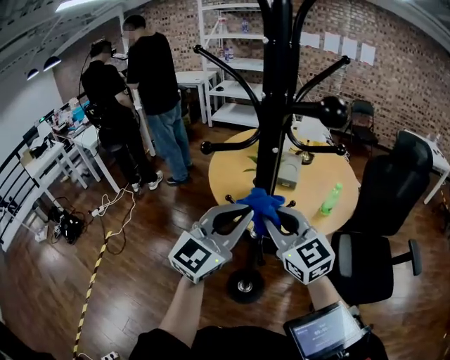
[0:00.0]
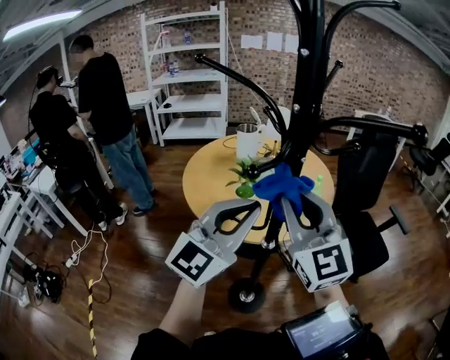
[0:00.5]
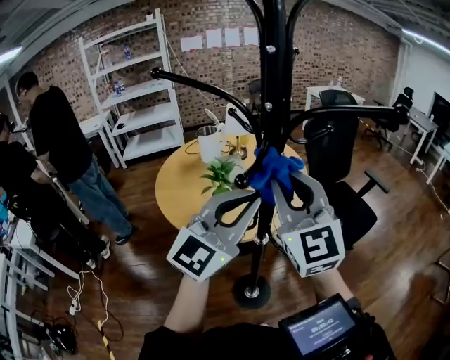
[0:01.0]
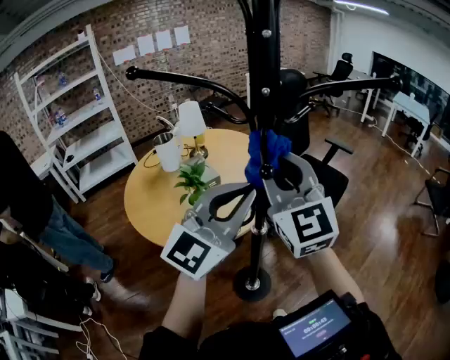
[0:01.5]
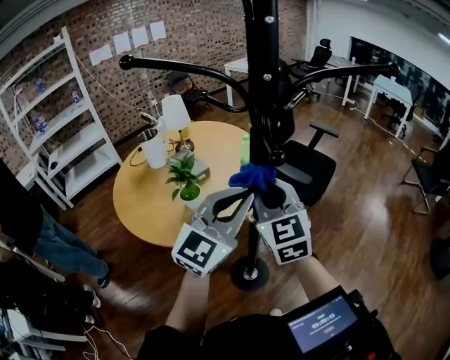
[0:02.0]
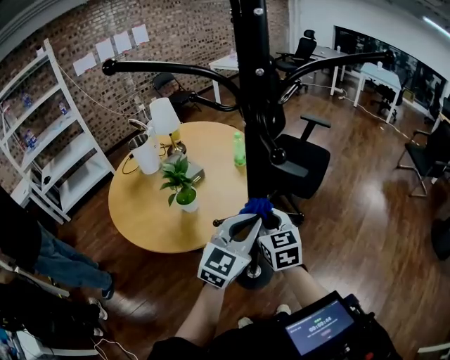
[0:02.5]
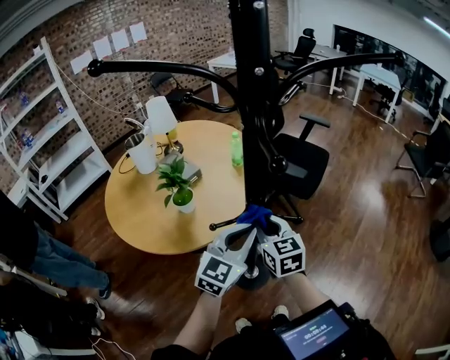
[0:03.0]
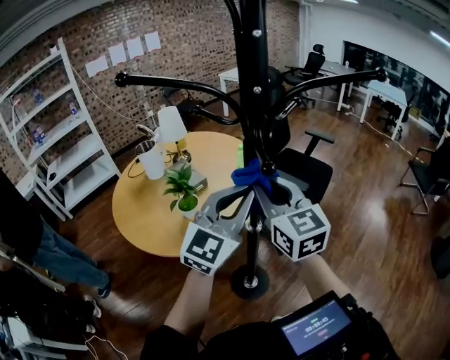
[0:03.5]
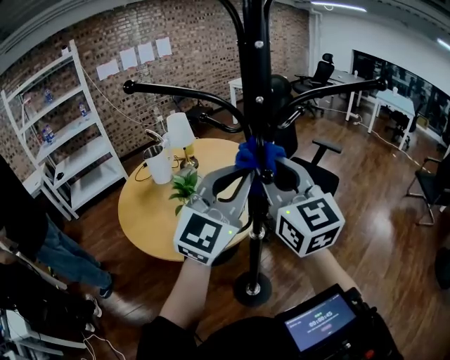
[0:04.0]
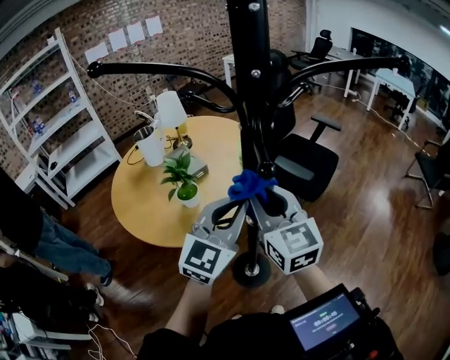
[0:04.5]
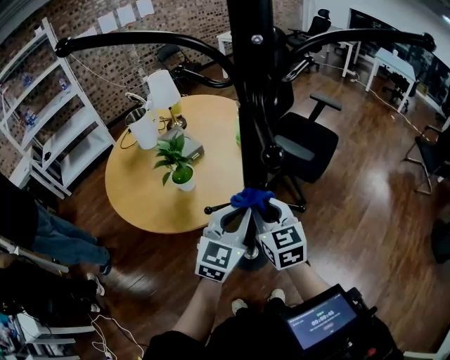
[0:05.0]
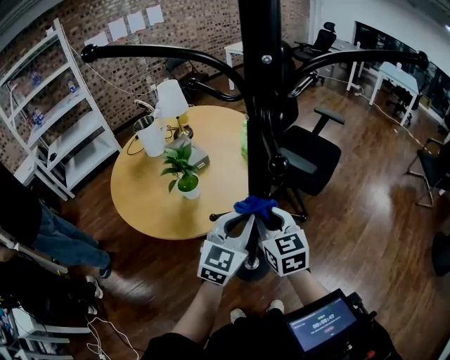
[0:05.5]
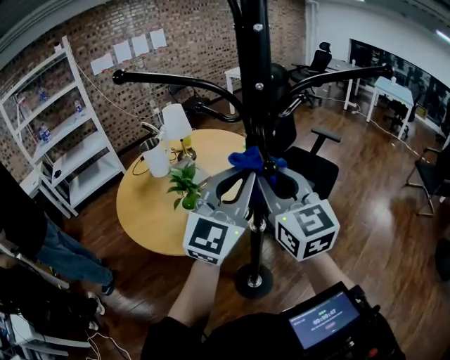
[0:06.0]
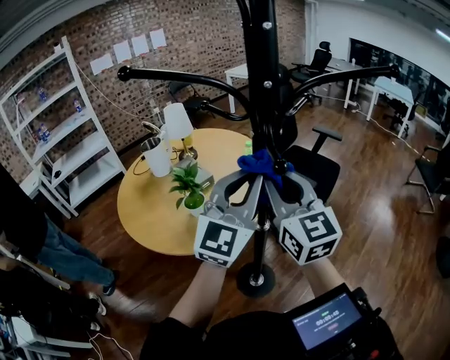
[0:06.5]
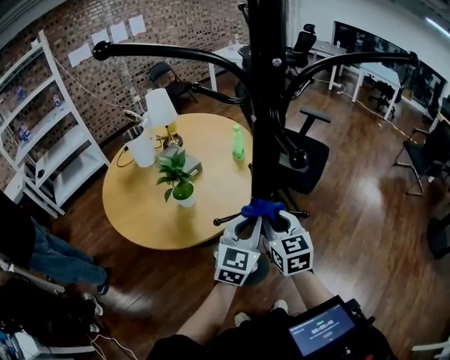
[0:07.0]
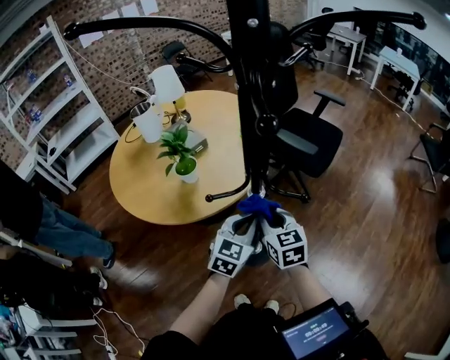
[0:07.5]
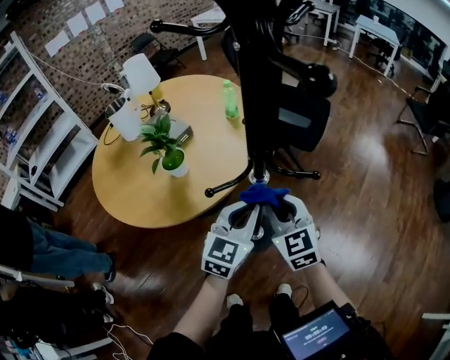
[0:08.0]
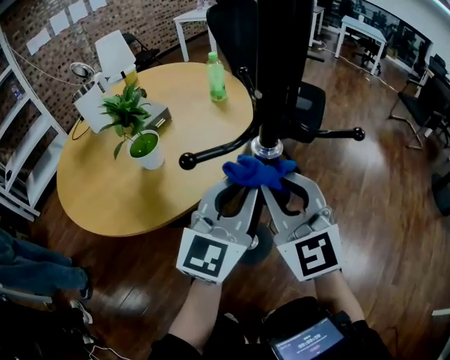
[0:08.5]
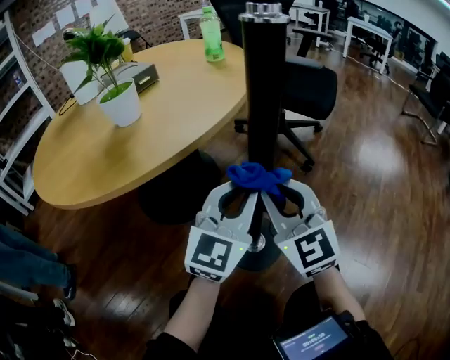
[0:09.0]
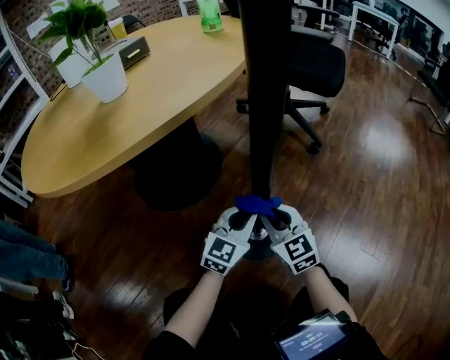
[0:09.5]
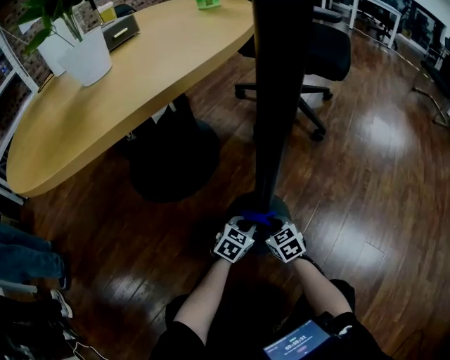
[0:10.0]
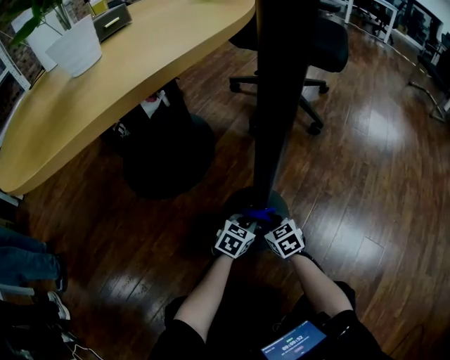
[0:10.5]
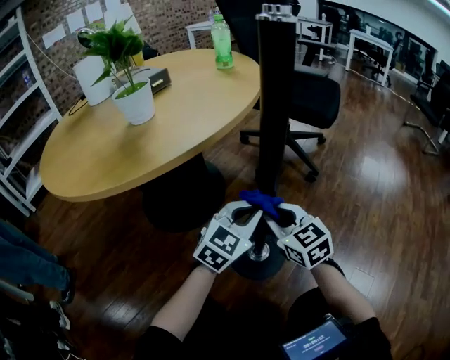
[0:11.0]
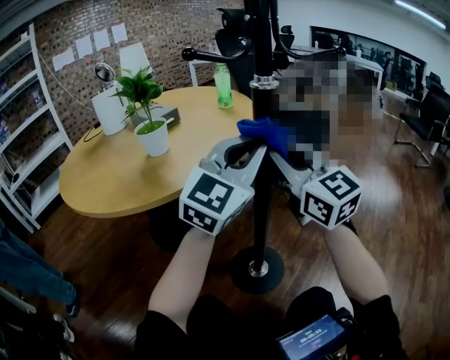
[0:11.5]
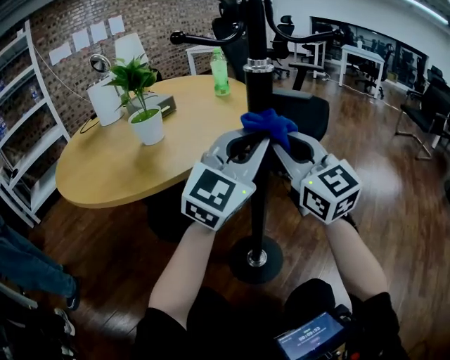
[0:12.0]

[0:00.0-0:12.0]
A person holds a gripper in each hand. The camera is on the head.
0:00.0 to 0:02.0: The right gripper travels upward and back again, roughly 15 cm each way, and rotates some 80 degrees; the left gripper reaches approximately 5 cm upward, then returns, and rotates some 60 degrees.
0:02.0 to 0:04.0: Both grippers move upward, approximately 10 cm.
0:04.0 to 0:06.0: The right gripper reaches approximately 30 cm downward, then returns. The left gripper travels downward and back again, about 25 cm each way.
0:06.0 to 0:08.0: The two grippers go some 30 cm downward. The left gripper swivels approximately 30 degrees. Meanwhile the right gripper turns by about 30 degrees.
0:08.0 to 0:10.0: Both grippers travel together downward, approximately 80 cm. The right gripper changes its angle by approximately 30 degrees, while the left gripper turns by about 30 degrees.
0:10.0 to 0:12.0: Both grippers move upward, roughly 60 cm. The left gripper tilts its fingers roughly 50 degrees upward. The right gripper tips its fingers upward by about 50 degrees.

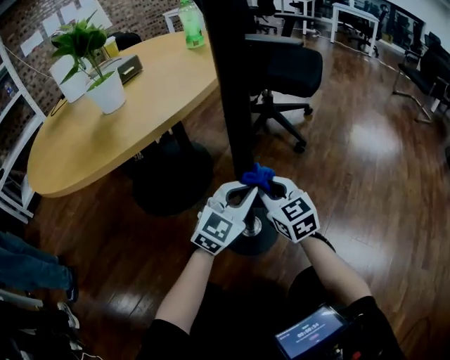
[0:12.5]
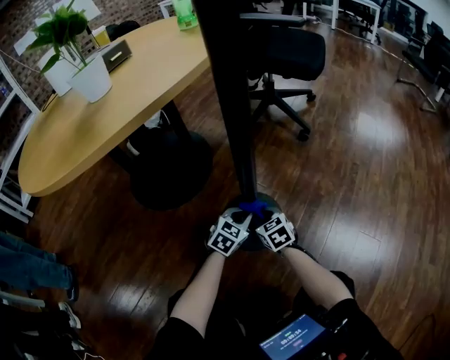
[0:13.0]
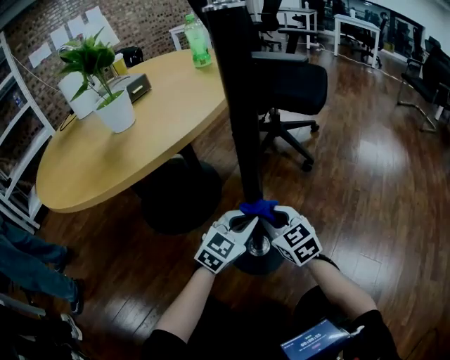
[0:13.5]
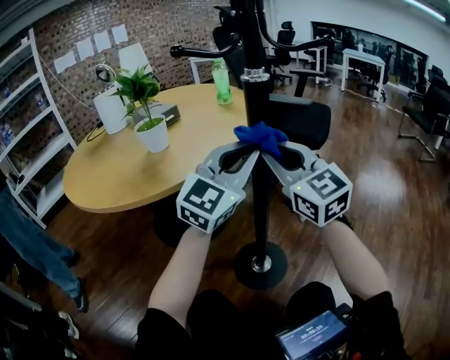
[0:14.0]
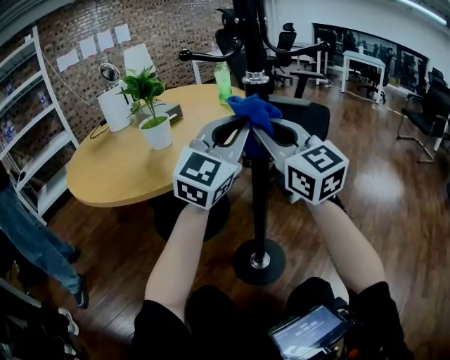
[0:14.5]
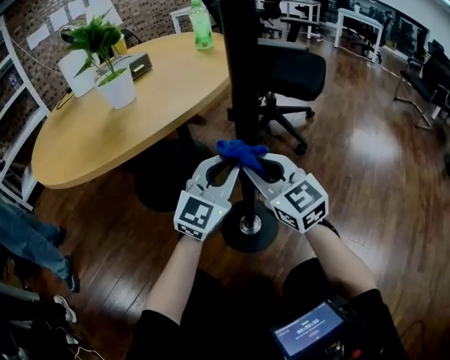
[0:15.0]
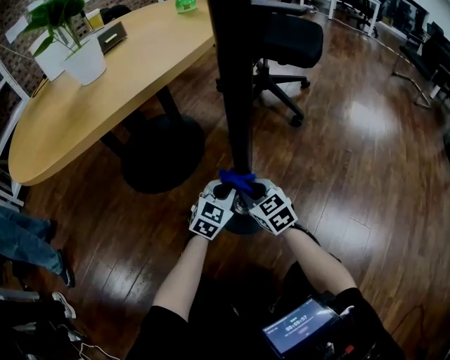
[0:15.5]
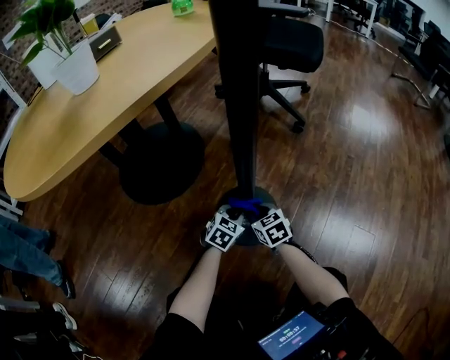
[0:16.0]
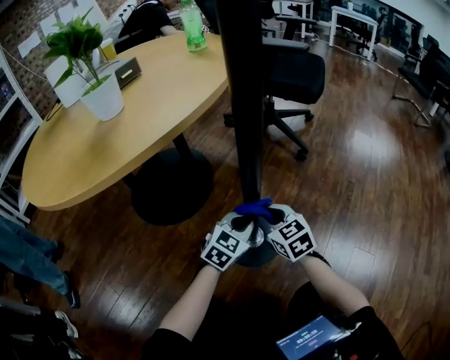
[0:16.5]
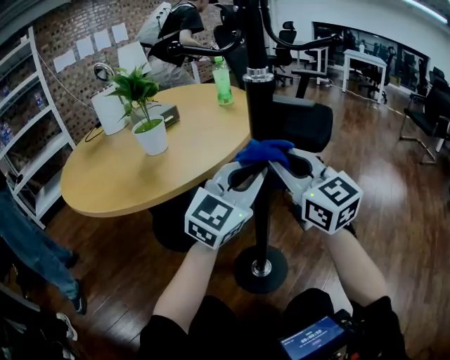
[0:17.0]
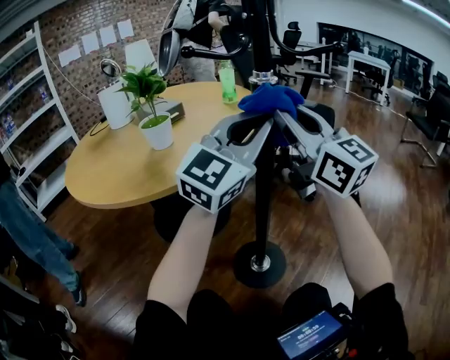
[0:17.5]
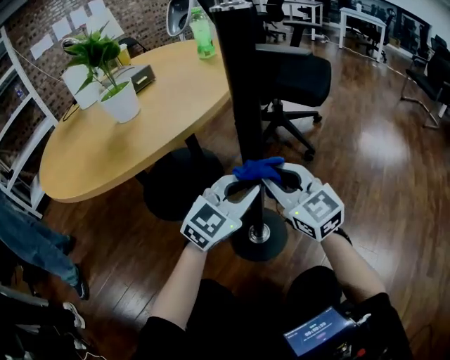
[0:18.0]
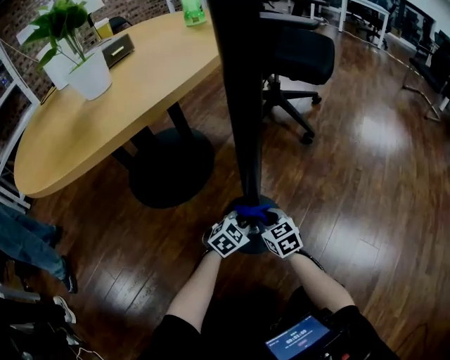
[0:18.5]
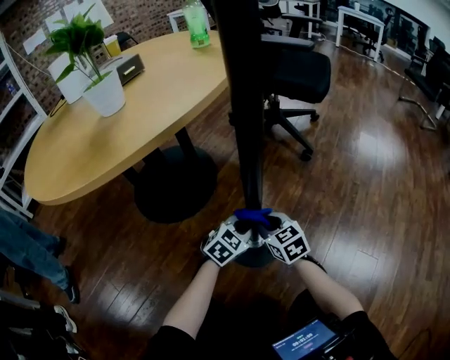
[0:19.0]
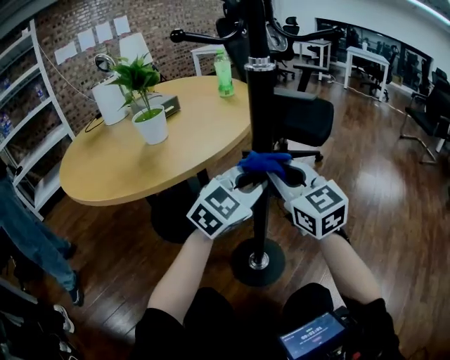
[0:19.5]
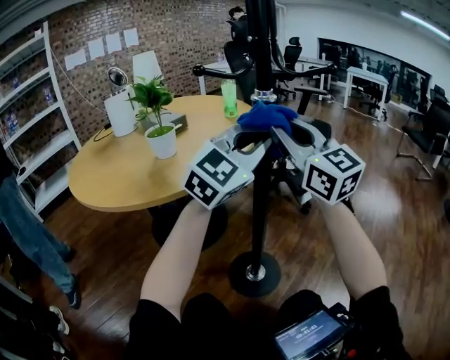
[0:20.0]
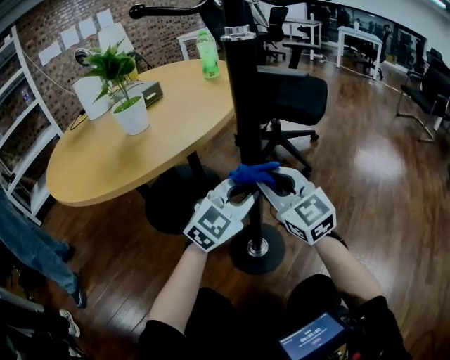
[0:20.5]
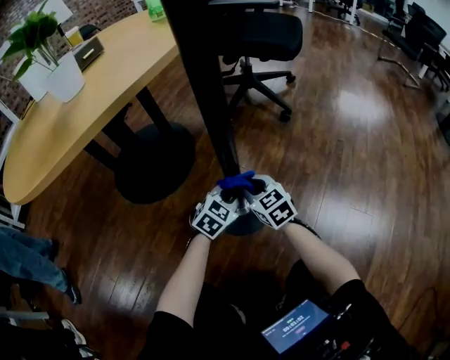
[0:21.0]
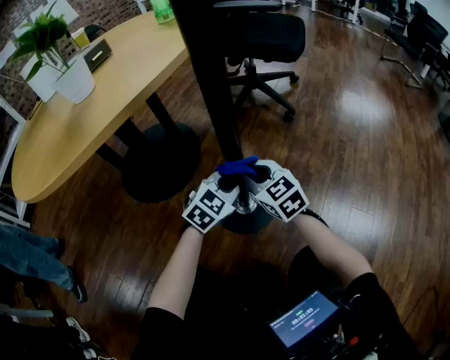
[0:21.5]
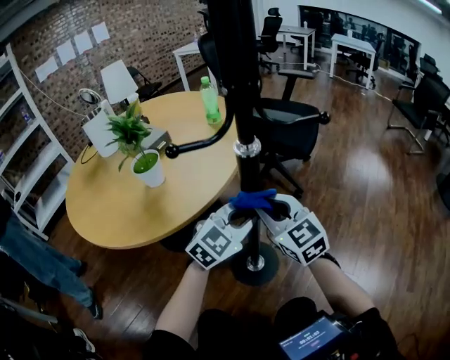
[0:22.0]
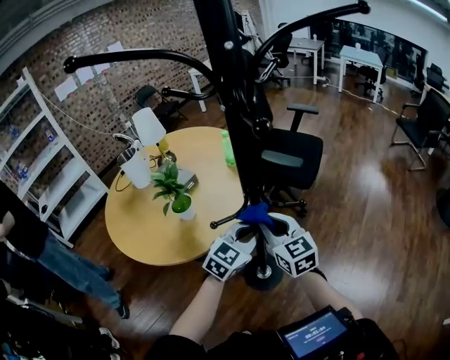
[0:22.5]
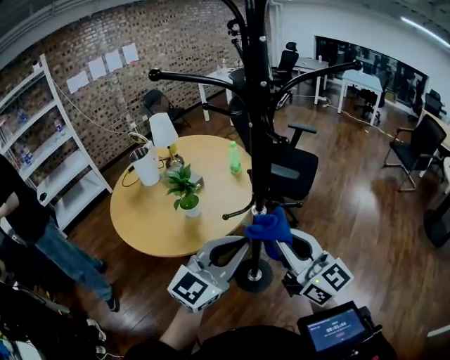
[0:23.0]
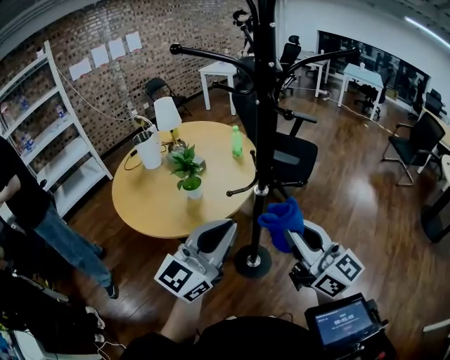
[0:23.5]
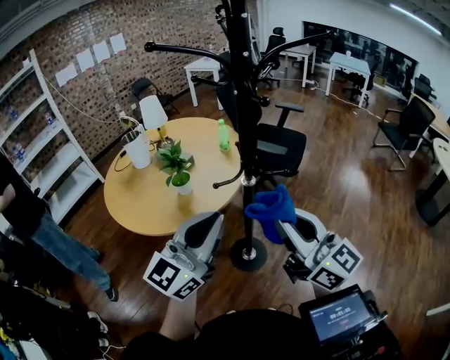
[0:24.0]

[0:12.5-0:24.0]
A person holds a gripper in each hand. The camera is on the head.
0:12.5 to 0:14.5: Both grippers move upward, about 35 cm. The right gripper swivels about 30 degrees; the left gripper swivels roughly 30 degrees.
0:14.5 to 0:16.5: Both grippers move downward, approximately 50 cm. The right gripper tilts its fingers about 40 degrees downward, while the left gripper tips its fingers downward by some 40 degrees.
0:16.5 to 0:18.5: The left gripper travels upward and back again, approximately 50 cm each way; the right gripper reaches about 50 cm upward, then returns.
0:18.5 to 0:20.0: Both grippers travel together upward, some 60 cm. The right gripper tips its fingers upward by about 50 degrees. The left gripper tips its fingers upward by about 40 degrees.
0:20.0 to 0:22.0: The left gripper goes downward and returns, some 60 cm each way, and turns by some 30 degrees; the right gripper reaches about 60 cm downward, then returns, and changes its angle by about 30 degrees.
0:22.0 to 0:24.0: The grippers both shift upward and backward by roughly 50 cm. The left gripper tilts its fingers roughly 40 degrees upward. The right gripper turns by about 40 degrees.

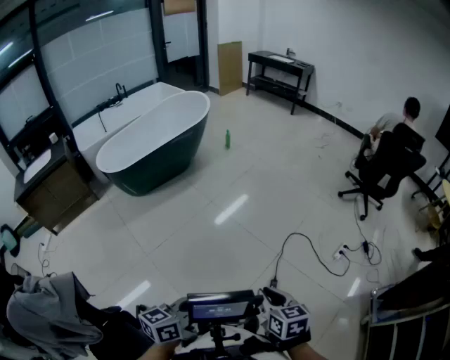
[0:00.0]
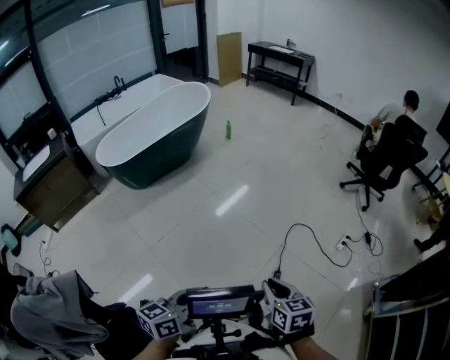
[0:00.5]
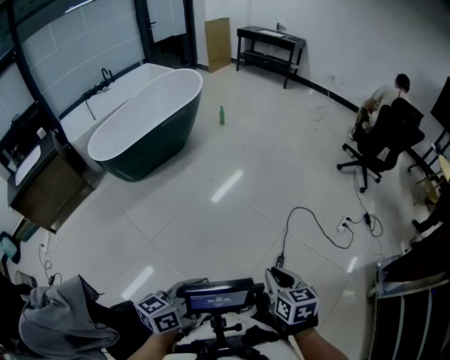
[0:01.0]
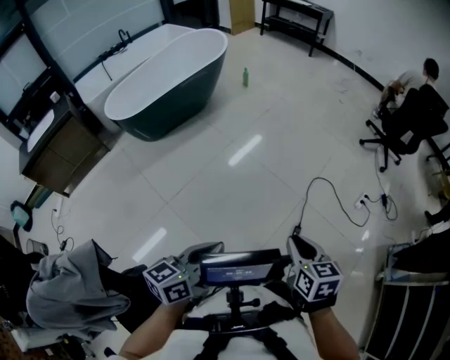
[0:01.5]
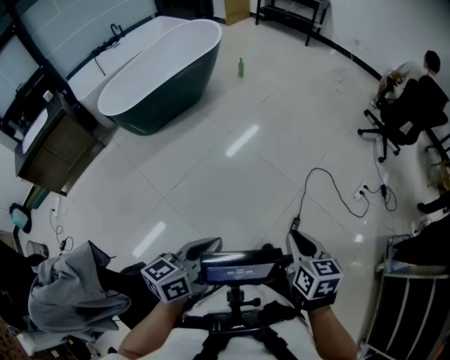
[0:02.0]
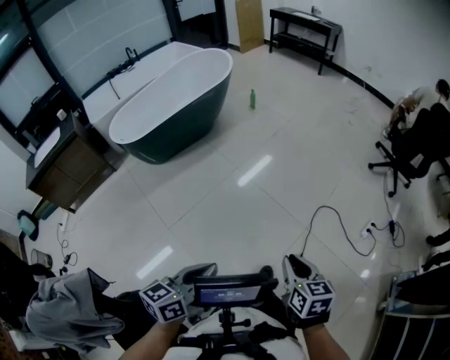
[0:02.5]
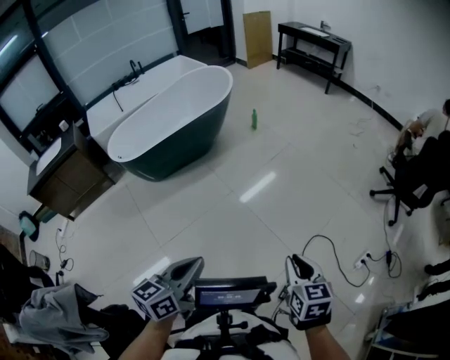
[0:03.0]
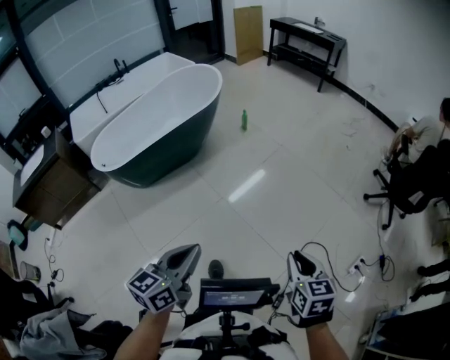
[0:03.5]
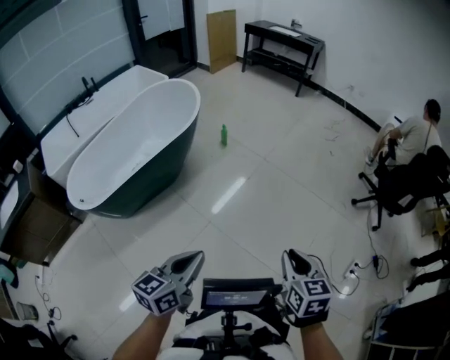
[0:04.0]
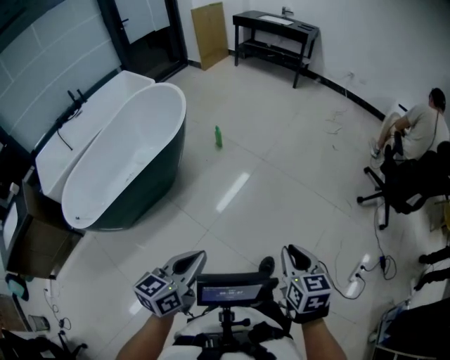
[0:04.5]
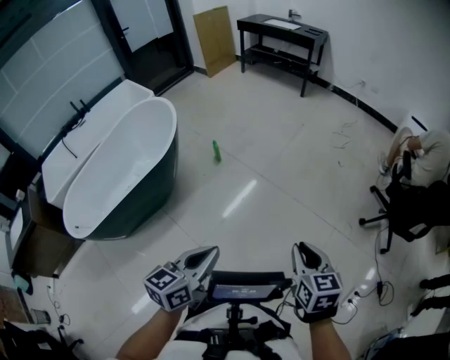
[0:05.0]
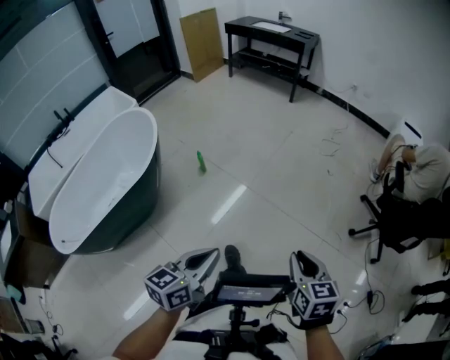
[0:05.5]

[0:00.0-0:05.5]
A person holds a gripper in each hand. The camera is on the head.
0:00.0 to 0:02.0: The right gripper is displaced to the left by some 5 cm. The left gripper travels to the left by about 10 cm.
0:02.0 to 0:03.5: Both grippers move forward, roughly 35 cm.
0:03.5 to 0:05.5: The pair of grippers is taken forward, some 50 cm.
